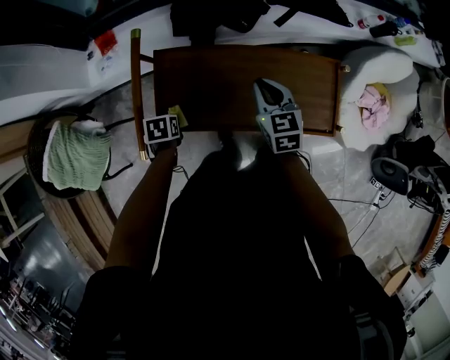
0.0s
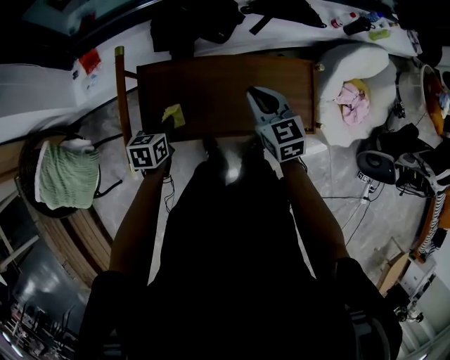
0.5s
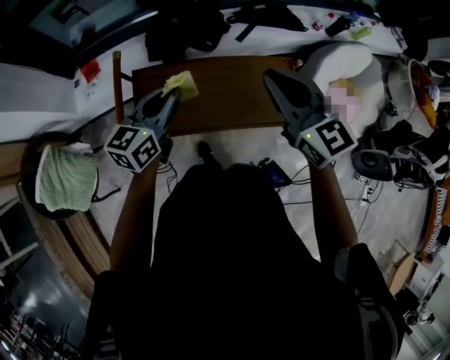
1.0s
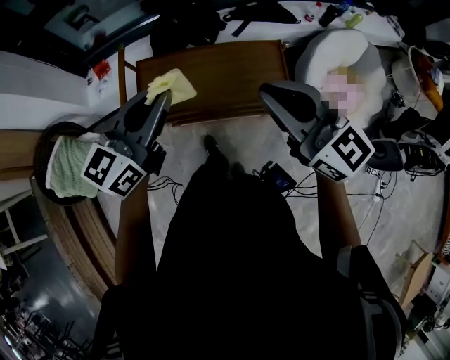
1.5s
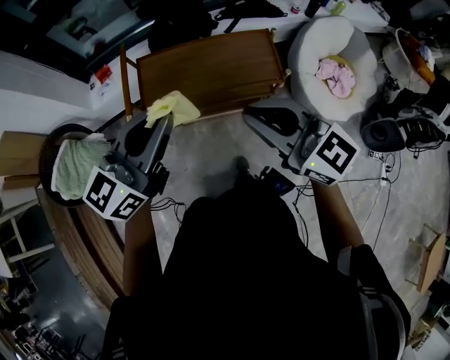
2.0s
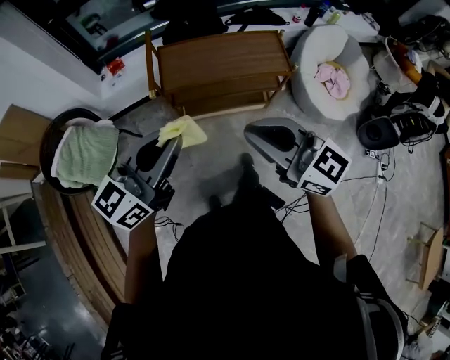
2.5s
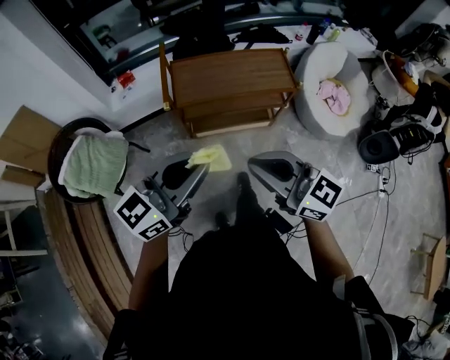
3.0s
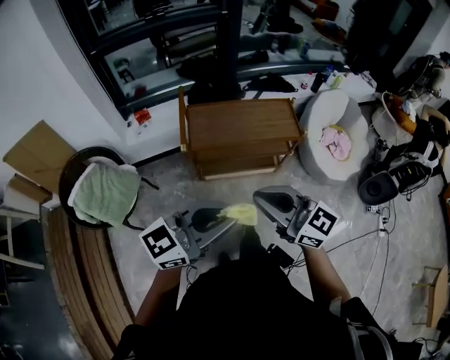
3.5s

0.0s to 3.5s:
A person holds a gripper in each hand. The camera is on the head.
0.0s to 2.0s: The left gripper shifts roughly 50 cm upward, and points its fingers some 80 degrees further upward. The right gripper changes place by roughly 50 cm, and tips its fingers upward by about 30 degrees.
2.0s to 3.5s: The left gripper moves backward, some 25 cm, and swivels approximately 30 degrees, while the right gripper moves backward and to the left, approximately 25 cm.

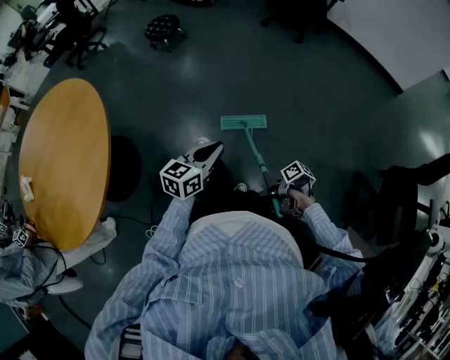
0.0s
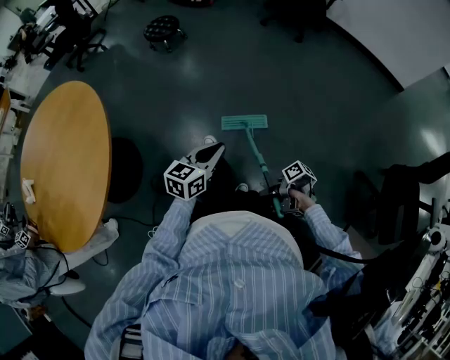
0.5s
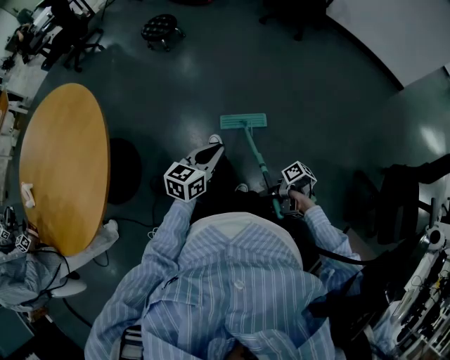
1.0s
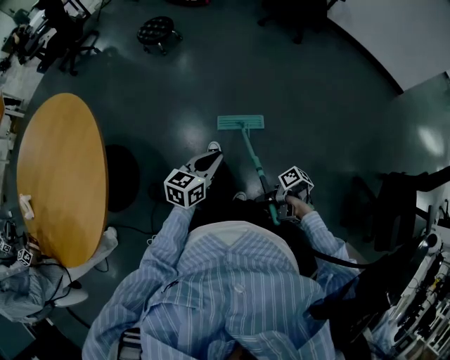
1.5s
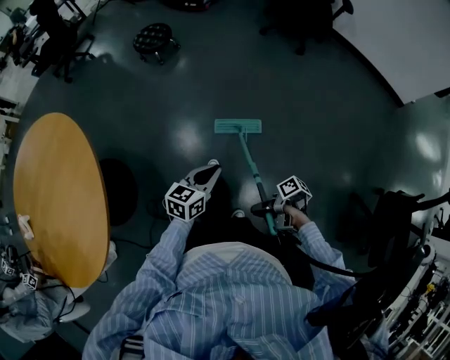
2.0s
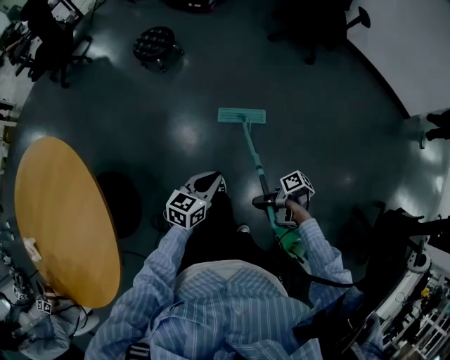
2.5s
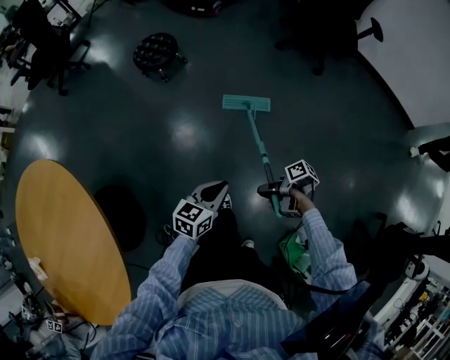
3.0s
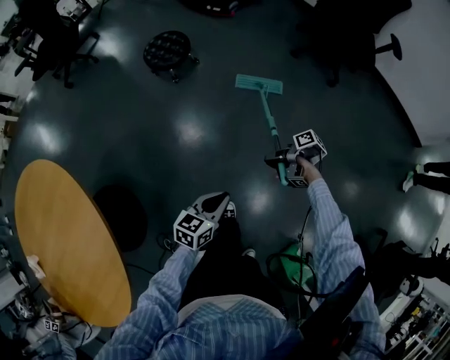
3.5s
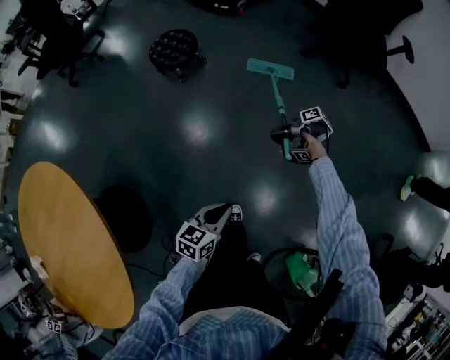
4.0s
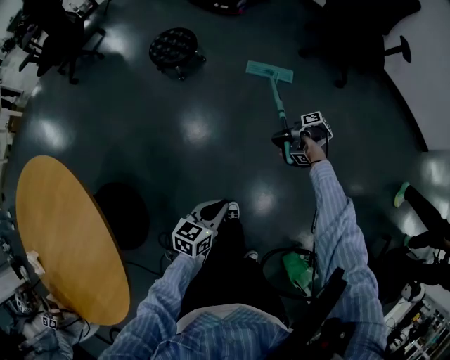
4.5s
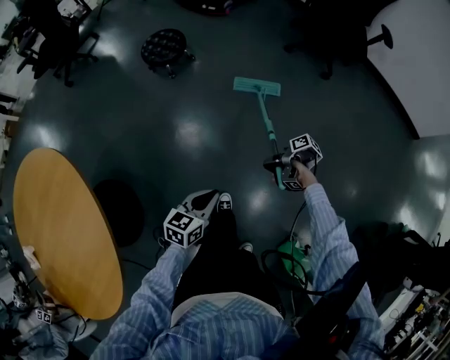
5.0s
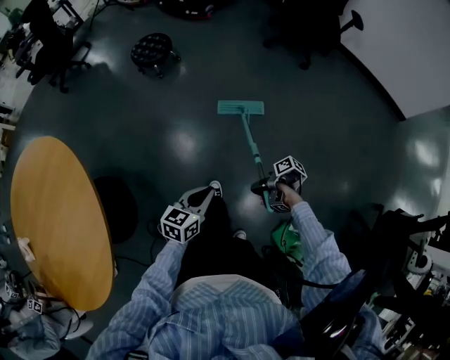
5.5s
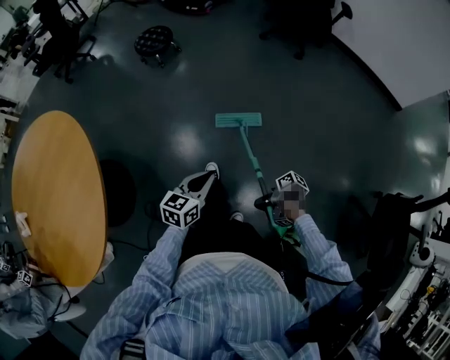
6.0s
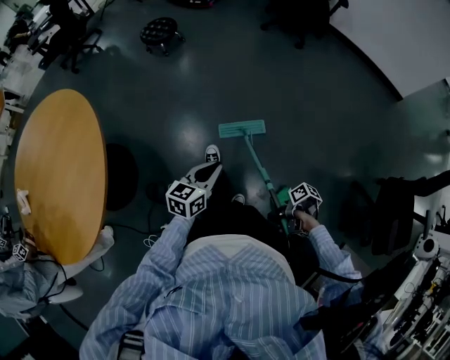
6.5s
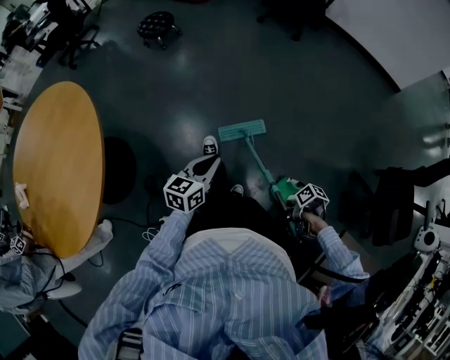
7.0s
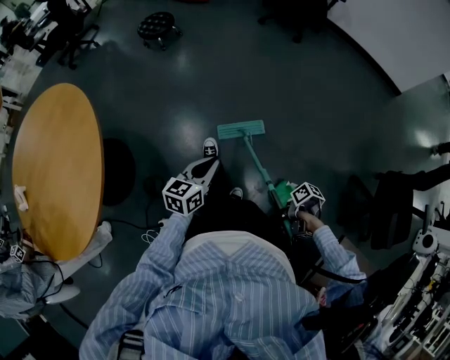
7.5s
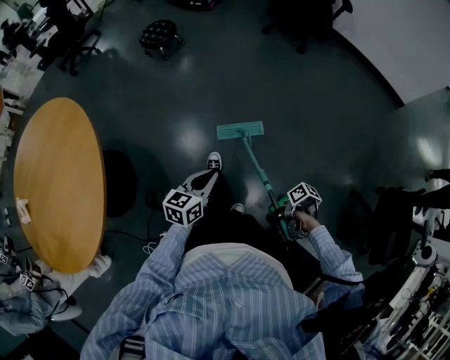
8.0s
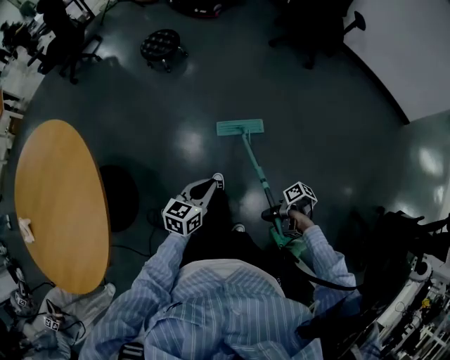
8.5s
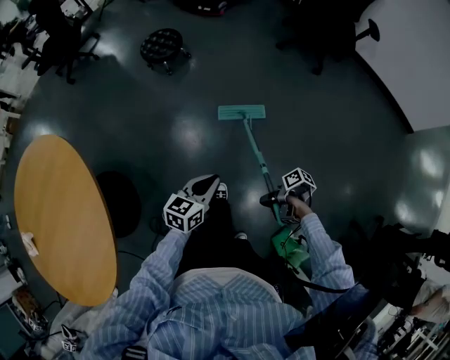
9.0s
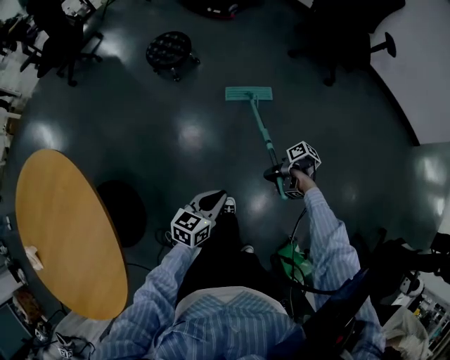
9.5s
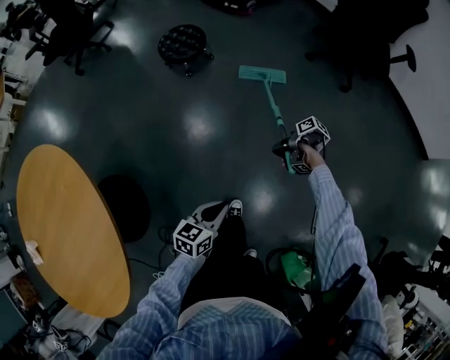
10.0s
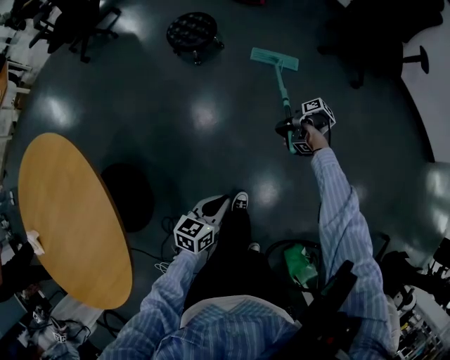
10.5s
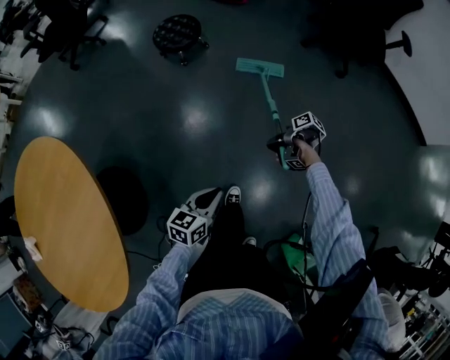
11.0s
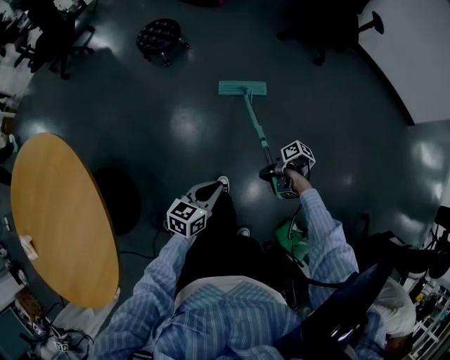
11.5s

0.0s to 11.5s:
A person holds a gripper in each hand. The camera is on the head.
0.0s to 2.0s: The left gripper ends up about 20 cm from where it was.
2.0s to 4.0s: The left gripper shifts by roughly 30 cm.
4.0s to 6.0s: The left gripper shifts by roughly 35 cm.
7.5s to 9.5s: The left gripper ends up approximately 40 cm from where it was.
9.5s to 11.5s: The left gripper ends up some 10 cm from where it was.

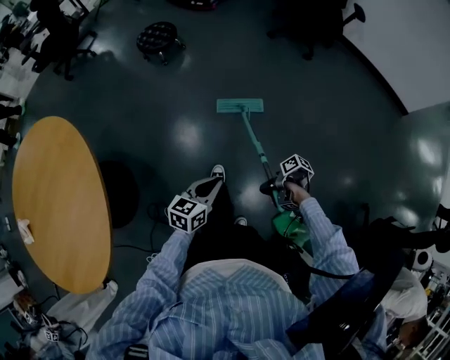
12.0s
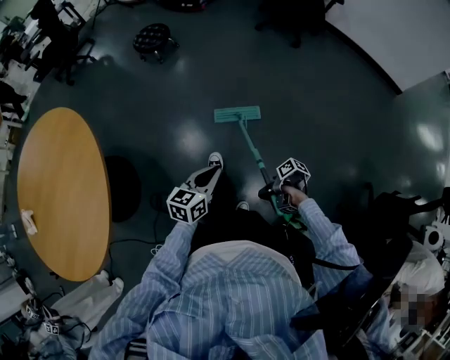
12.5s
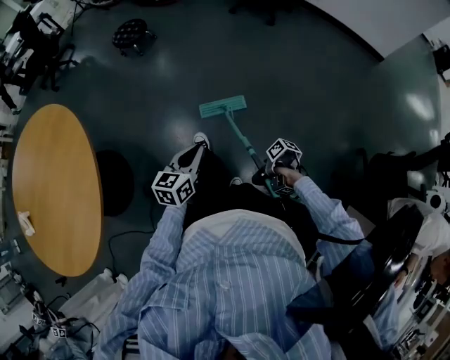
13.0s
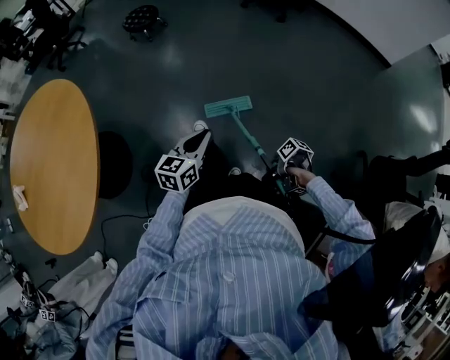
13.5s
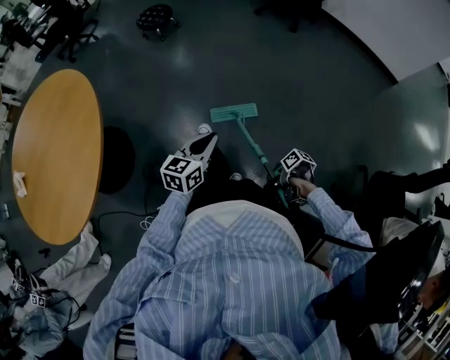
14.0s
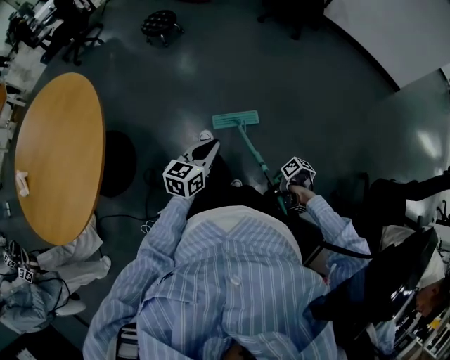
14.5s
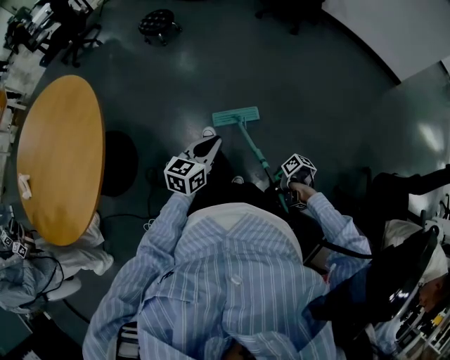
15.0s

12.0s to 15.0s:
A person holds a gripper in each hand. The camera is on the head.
12.0s to 13.5s: The left gripper changes place by roughly 20 cm.

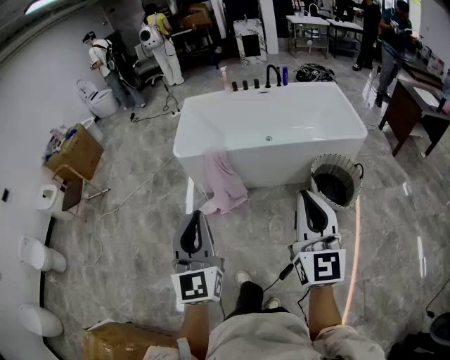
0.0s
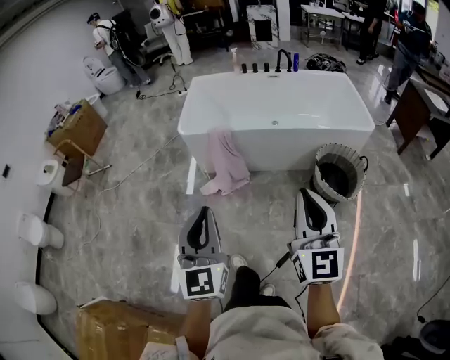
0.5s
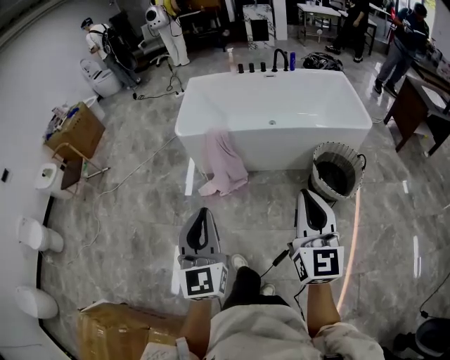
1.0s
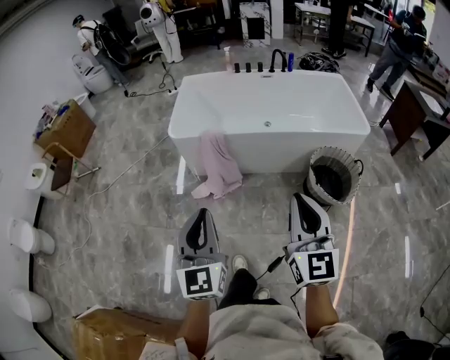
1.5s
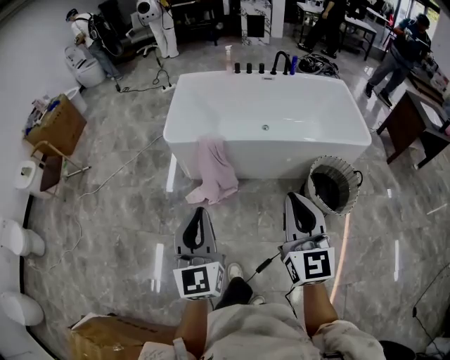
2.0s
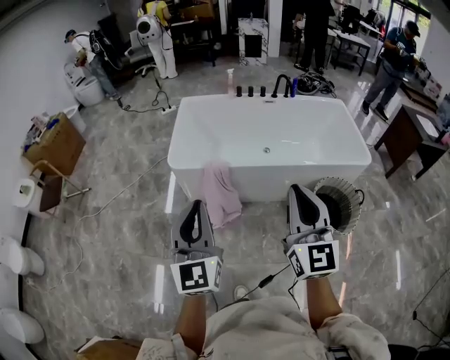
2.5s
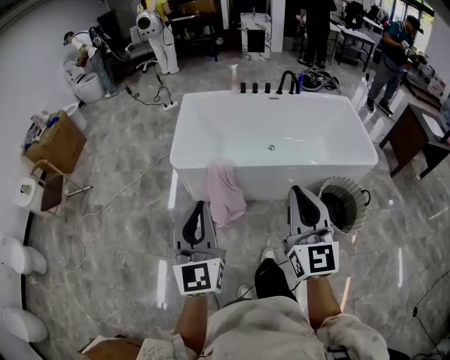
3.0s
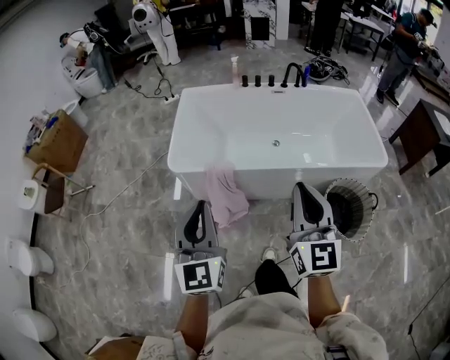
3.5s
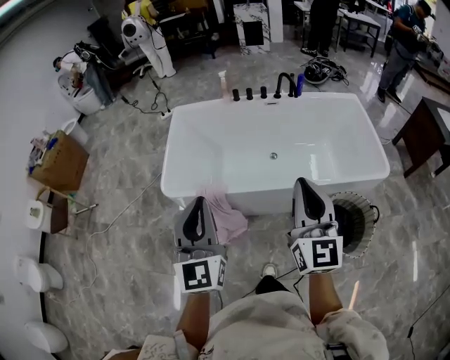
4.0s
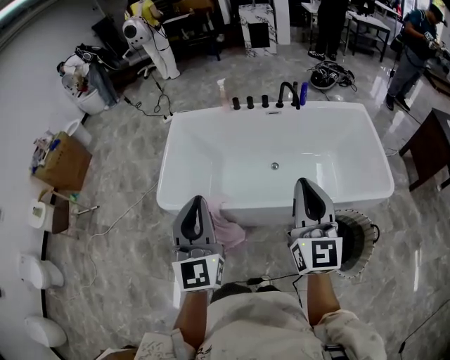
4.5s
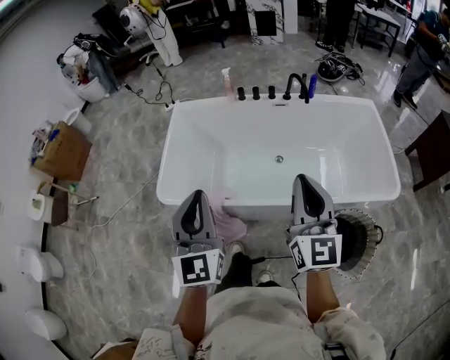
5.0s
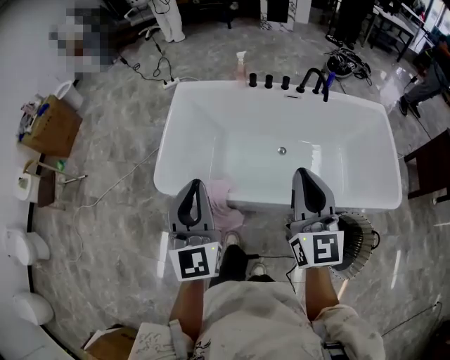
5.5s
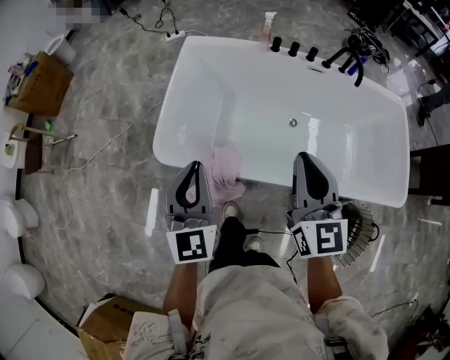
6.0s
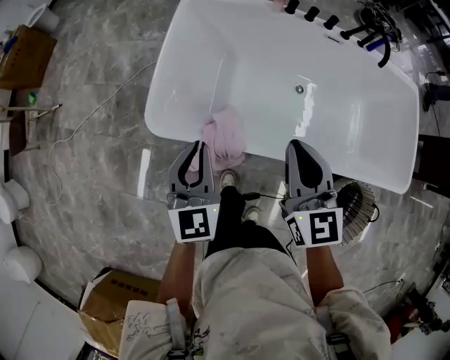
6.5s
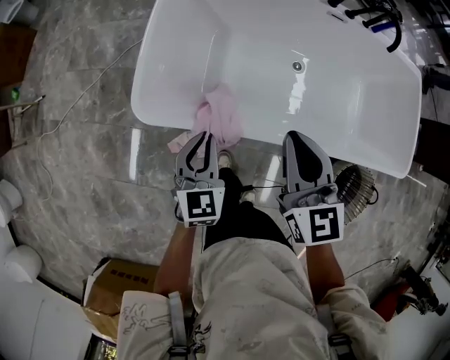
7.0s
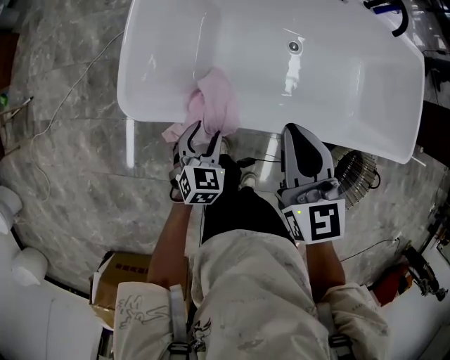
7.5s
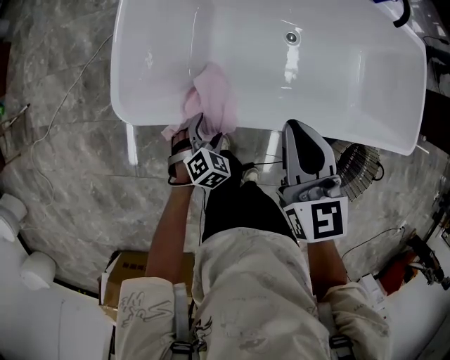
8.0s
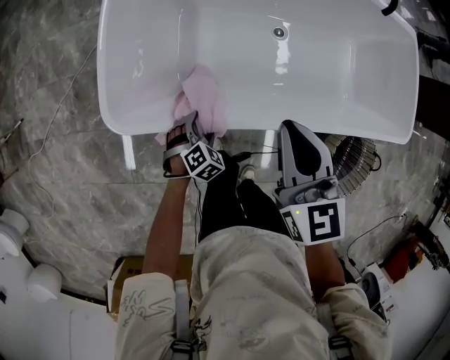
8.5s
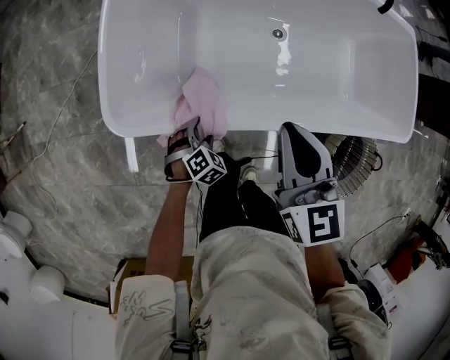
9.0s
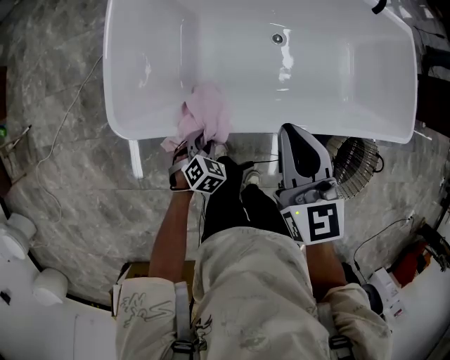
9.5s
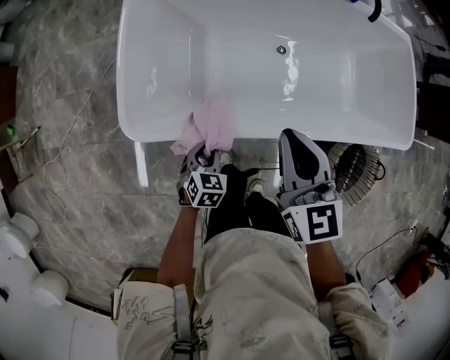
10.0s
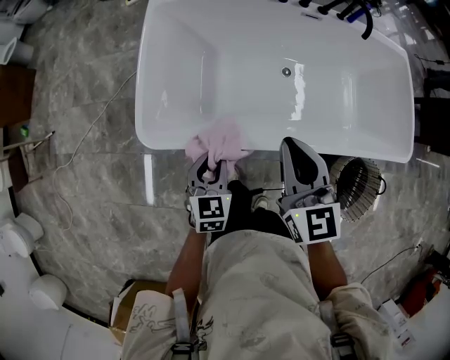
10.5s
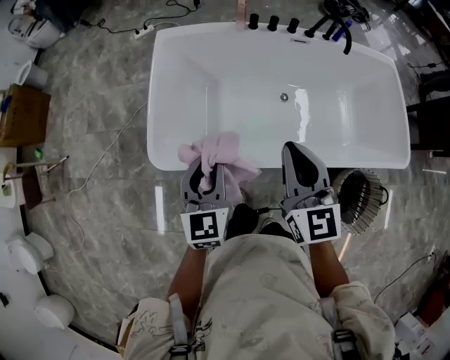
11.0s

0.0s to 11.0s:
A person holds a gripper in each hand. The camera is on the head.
0.0s to 2.0s: The left gripper goes some 15 cm forward and downward, while the right gripper shifts roughly 15 cm forward, to the left and downward.
2.0s to 3.5s: Both grippers move forward, approximately 20 cm.
3.5s to 5.5s: The two grippers go approximately 30 cm forward.
5.5s to 7.5s: The left gripper travels downward by some 40 cm, tips its fingers downward by some 50 degrees, and opens up. Meanwhile the right gripper is displaced downward, to the left and forward by roughly 30 cm, and turns by some 30 degrees.
7.5s to 9.0s: The left gripper shifts roughly 10 cm downward, and changes its angle by some 40 degrees.
9.0s to 11.0s: The right gripper heads upward, covering about 15 cm. Meanwhile the left gripper is displaced upward by approximately 40 cm, tilts its fingers roughly 50 degrees upward, and closes its fingers.
